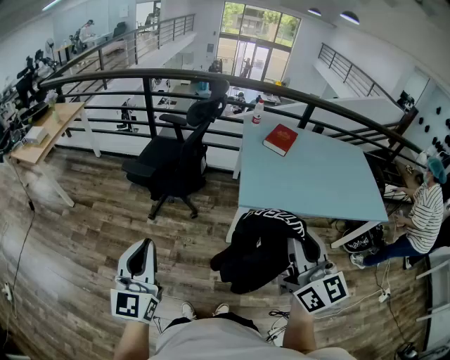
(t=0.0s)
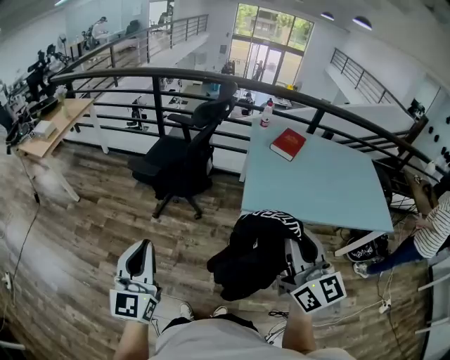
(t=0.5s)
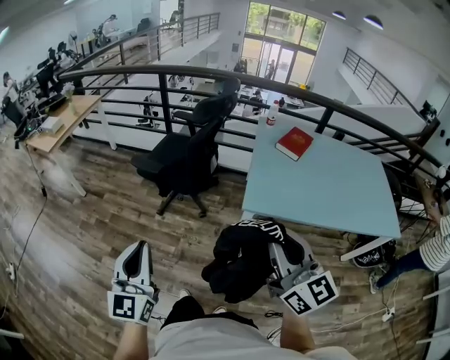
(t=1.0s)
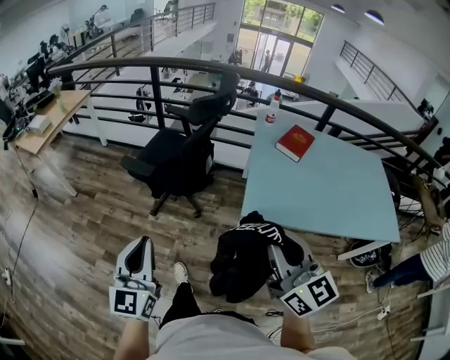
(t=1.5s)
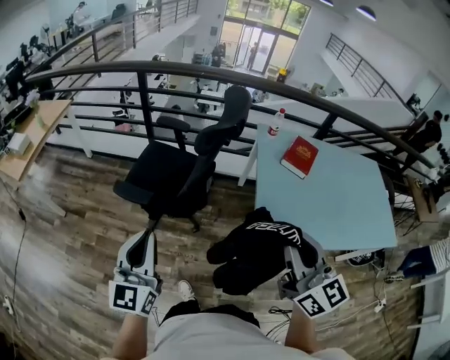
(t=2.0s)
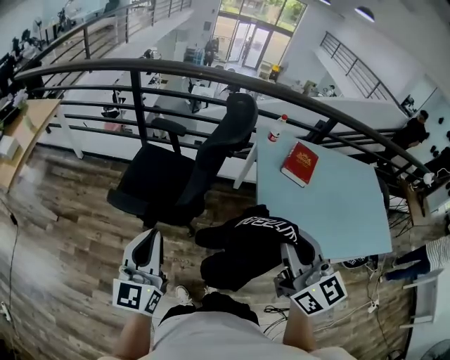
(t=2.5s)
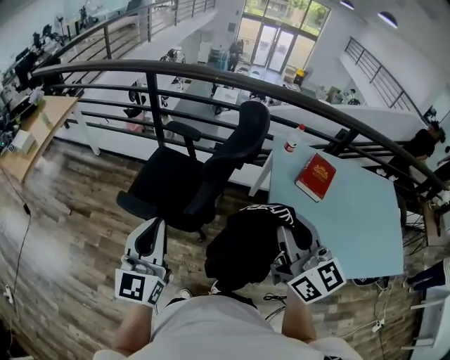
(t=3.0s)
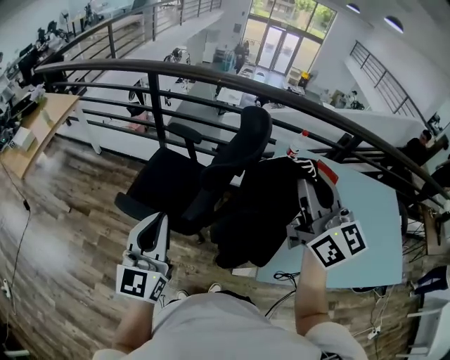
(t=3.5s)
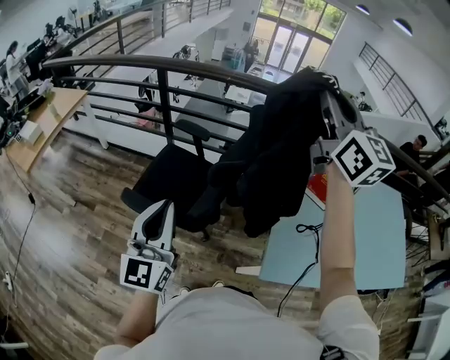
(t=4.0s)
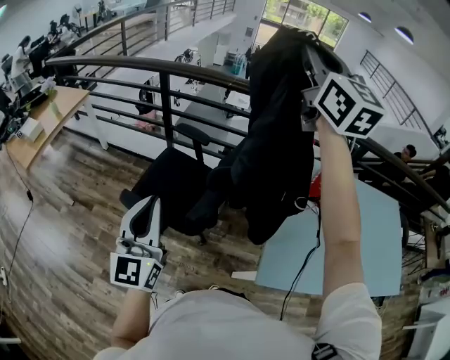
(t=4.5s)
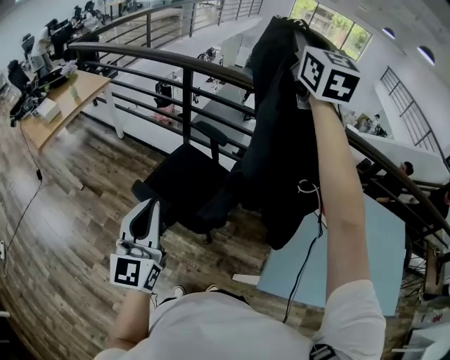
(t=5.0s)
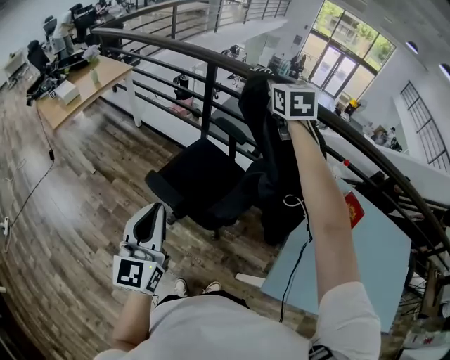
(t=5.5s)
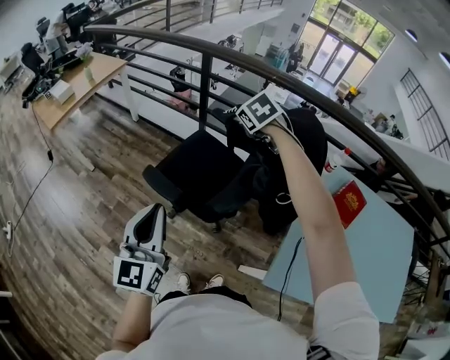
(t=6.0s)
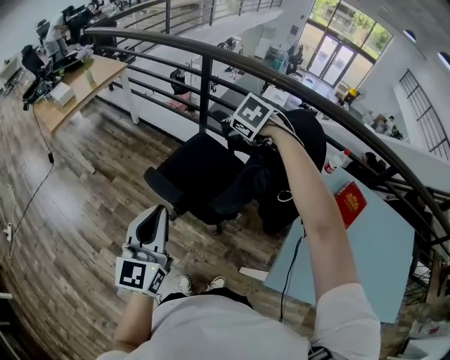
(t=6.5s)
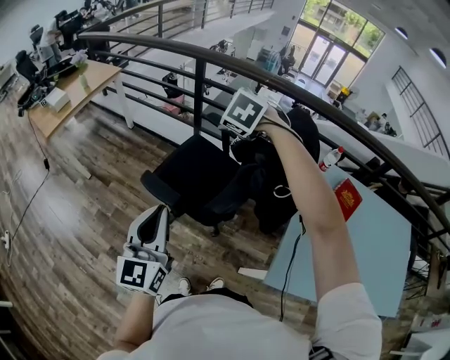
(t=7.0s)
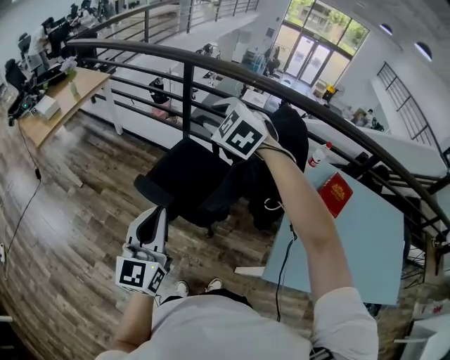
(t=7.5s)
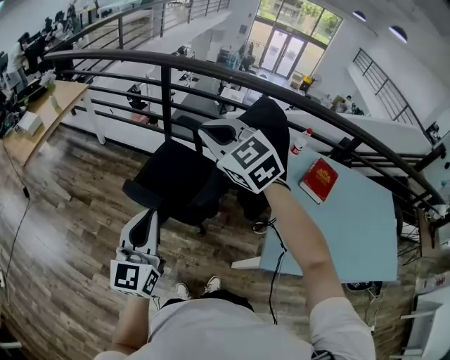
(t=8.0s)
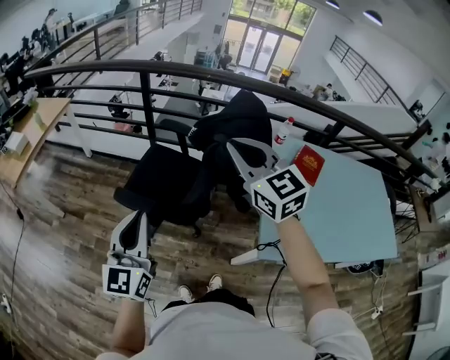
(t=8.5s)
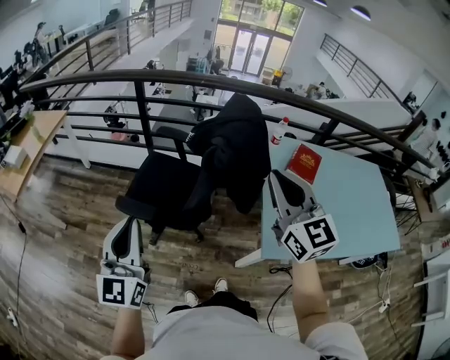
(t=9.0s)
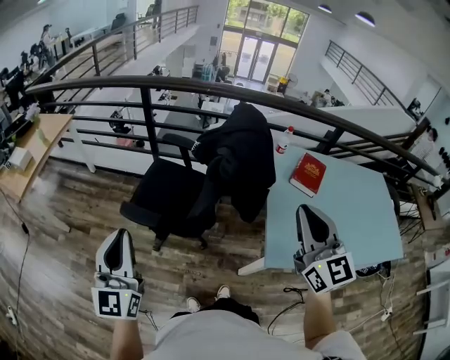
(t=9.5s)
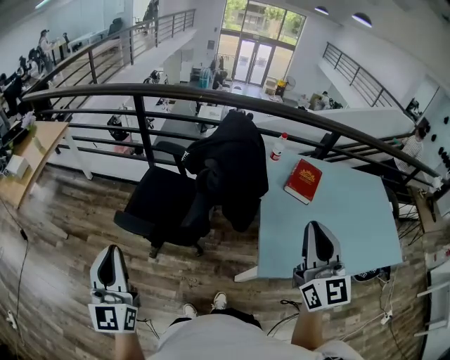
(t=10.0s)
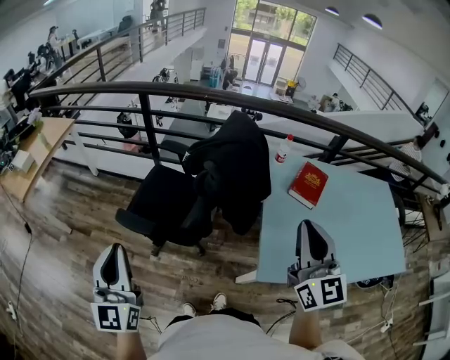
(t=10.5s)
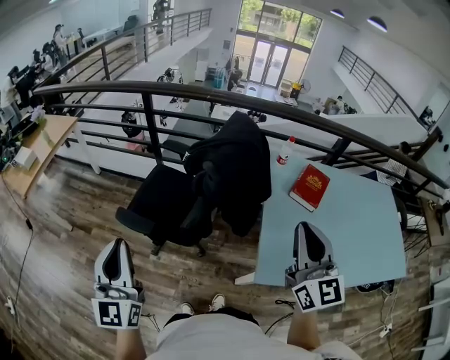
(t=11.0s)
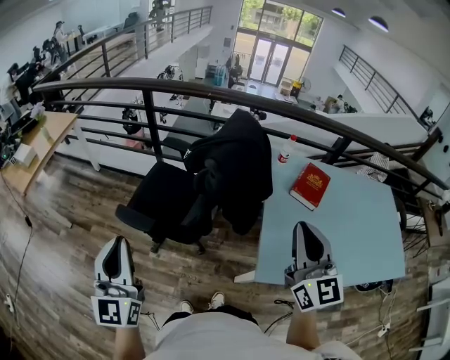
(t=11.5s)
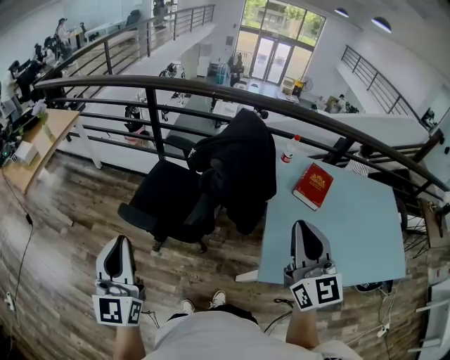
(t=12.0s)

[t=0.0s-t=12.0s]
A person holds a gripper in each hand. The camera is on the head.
t=0.0s to t=2.0s: The grippers both shift forward by roughly 30 cm.
t=2.0s to t=4.0s: The left gripper heads forward, covering some 20 cm. The right gripper moves forward and upward, some 40 cm.
t=4.0s to t=6.0s: The left gripper goes about 10 cm to the left. The right gripper shifts about 40 cm downward, to the left and forward, angles its fingers downward, by some 60 degrees, and opens.
t=6.0s to t=8.0s: The right gripper moves backward and upward, some 25 cm, turns by roughly 30 degrees, and closes its fingers.
t=8.0s to t=10.0s: The right gripper goes some 35 cm to the right and backward, and rotates approximately 60 degrees; the left gripper goes roughly 5 cm to the left.
t=10.0s to t=12.0s: The right gripper ends up roughly 5 cm from where it was.

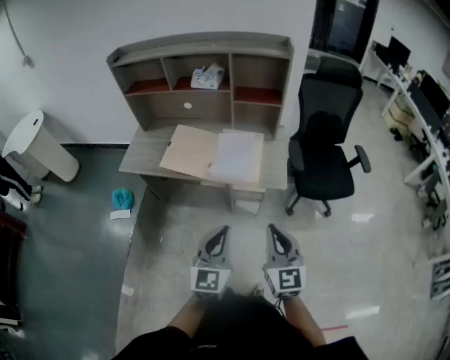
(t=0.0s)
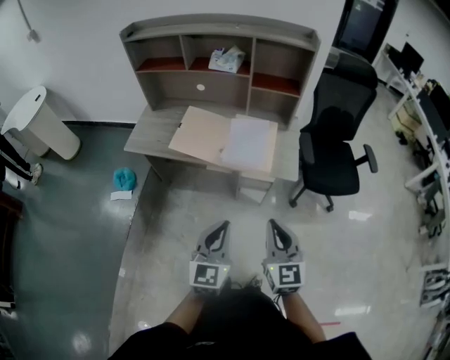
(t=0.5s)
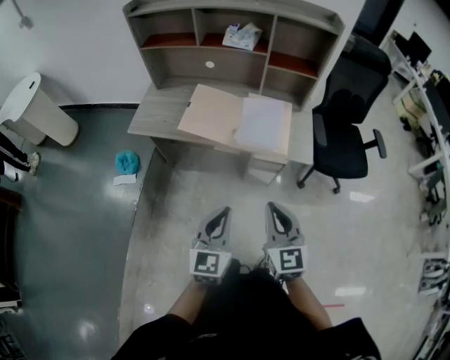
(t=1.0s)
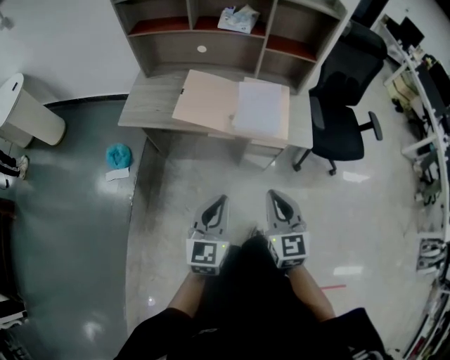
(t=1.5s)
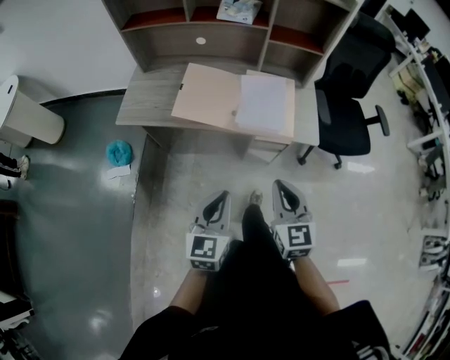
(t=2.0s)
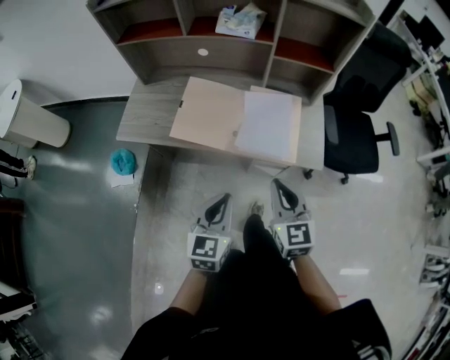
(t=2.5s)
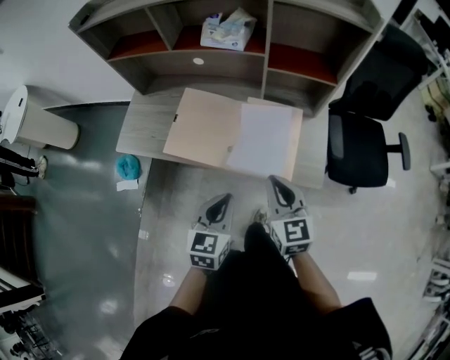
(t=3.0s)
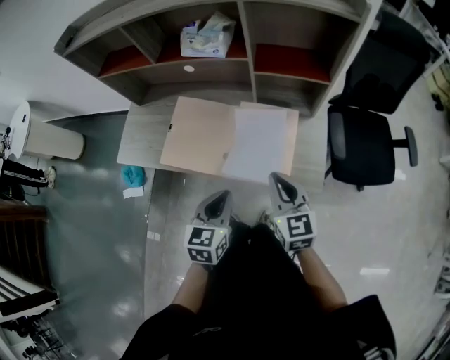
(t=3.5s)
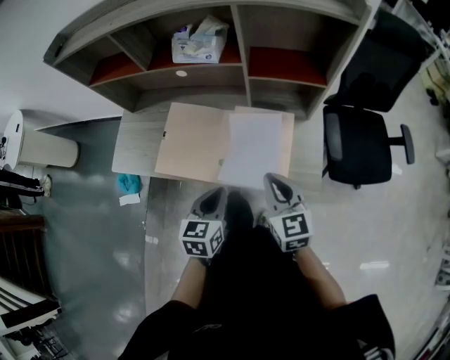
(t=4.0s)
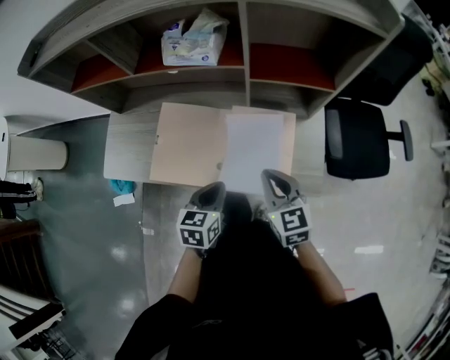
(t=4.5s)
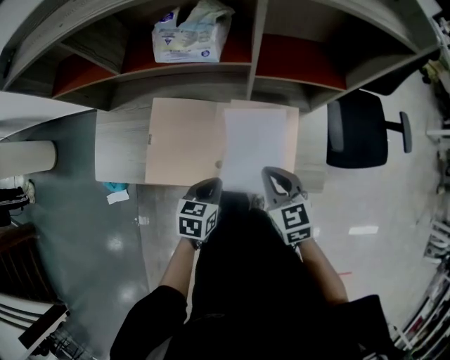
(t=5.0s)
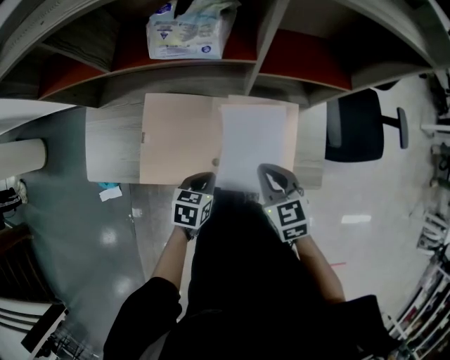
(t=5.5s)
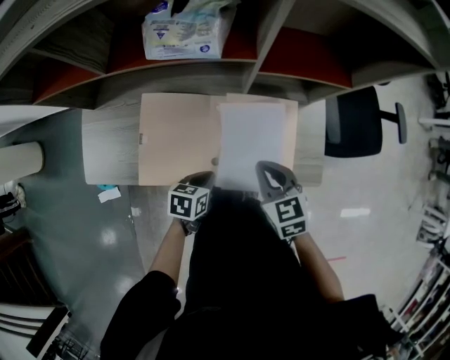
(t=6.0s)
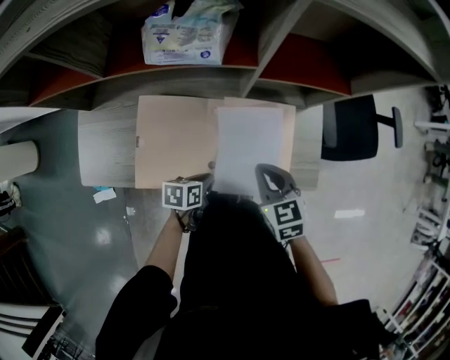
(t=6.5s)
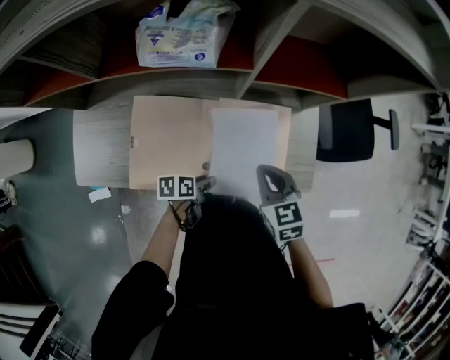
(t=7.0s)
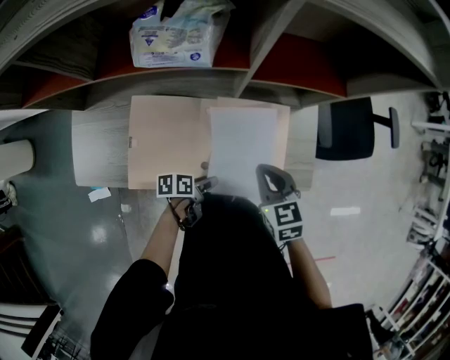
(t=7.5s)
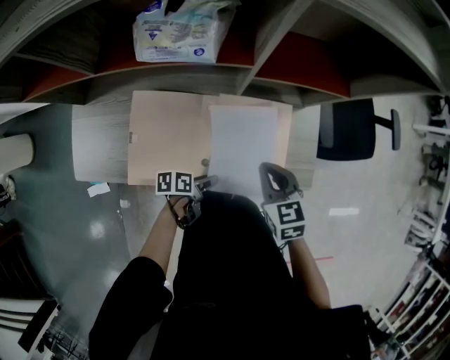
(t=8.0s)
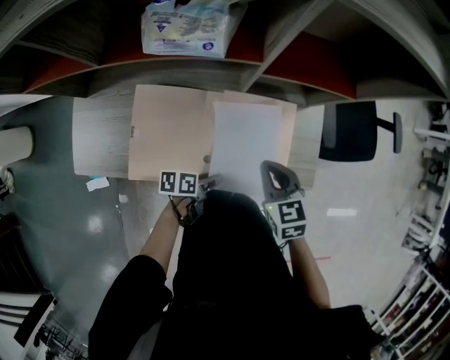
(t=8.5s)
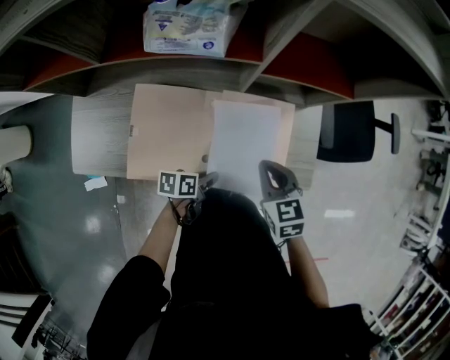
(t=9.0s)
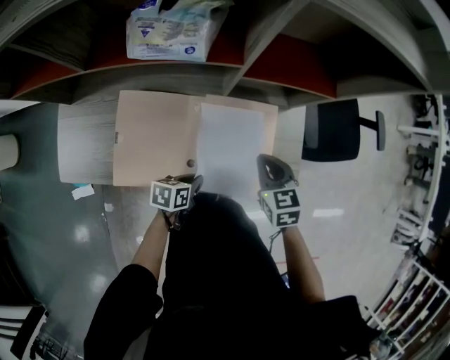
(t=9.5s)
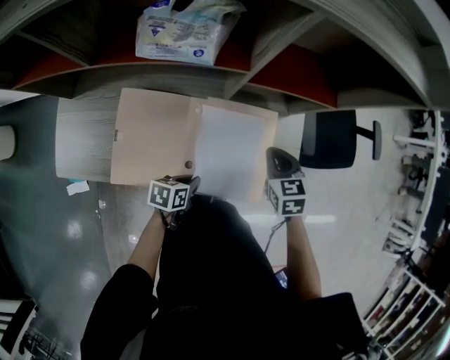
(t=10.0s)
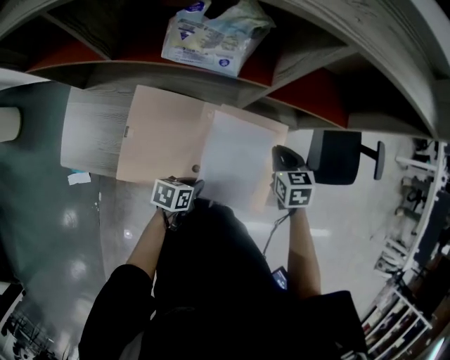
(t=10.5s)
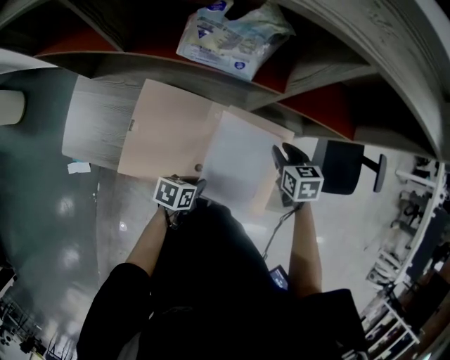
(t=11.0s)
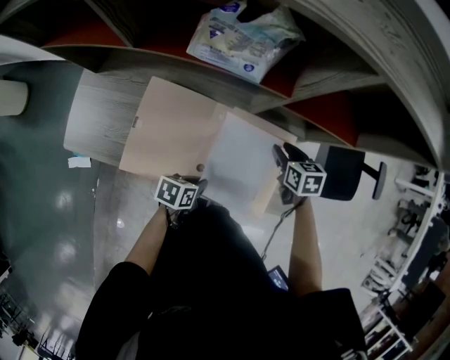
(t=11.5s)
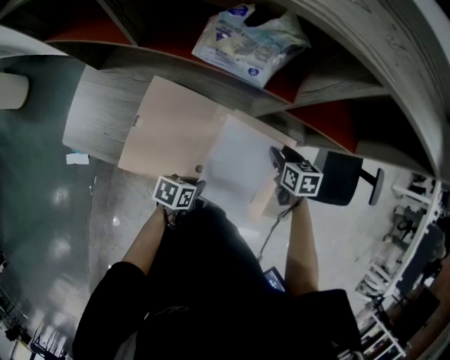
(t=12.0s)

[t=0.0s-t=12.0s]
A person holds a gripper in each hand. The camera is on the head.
t=0.0s to t=2.0s: The left gripper is displaced to the left and downward by about 20 cm. The right gripper heads to the left, downward and forward, covering some 20 cm.
t=2.0s to t=4.0s: The grippers both shift forward by about 25 cm.
t=4.0s to t=6.0s: The left gripper travels downward and forward by some 20 cm, and turns by roughly 40 degrees, while the right gripper is displaced downward, forward and to the left by about 15 cm, and changes its angle by approximately 20 degrees.
t=6.0s to t=8.0s: The left gripper shifts by some 5 cm, rotates approximately 40 degrees, and opens.
t=8.0s to t=10.0s: The left gripper rotates approximately 20 degrees, and closes its fingers; the right gripper moves forward, roughly 10 cm.
t=10.0s to t=12.0s: The right gripper is displaced downward and forward by roughly 10 cm, and opens its fingers.

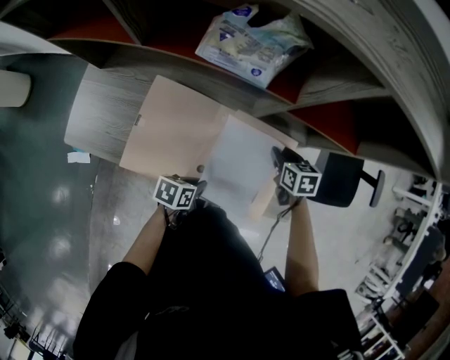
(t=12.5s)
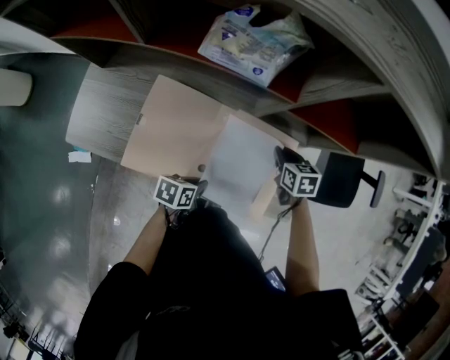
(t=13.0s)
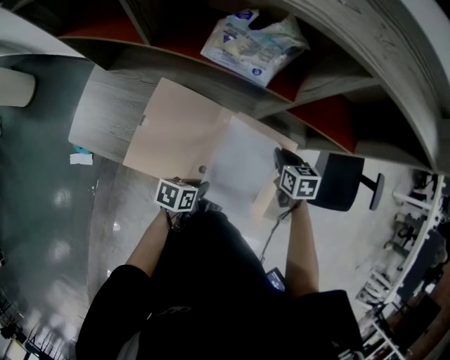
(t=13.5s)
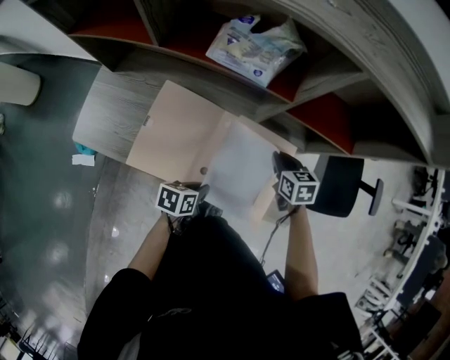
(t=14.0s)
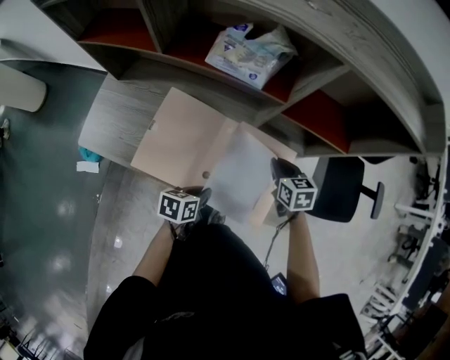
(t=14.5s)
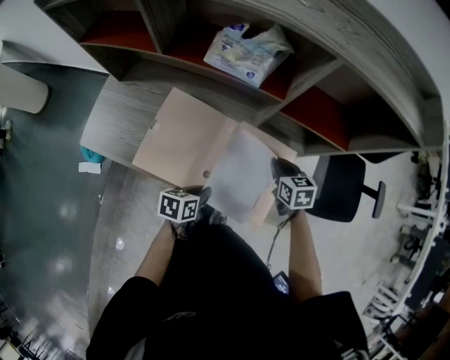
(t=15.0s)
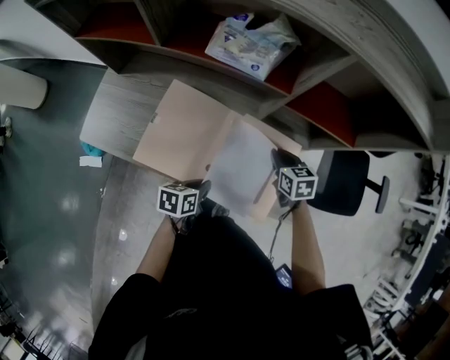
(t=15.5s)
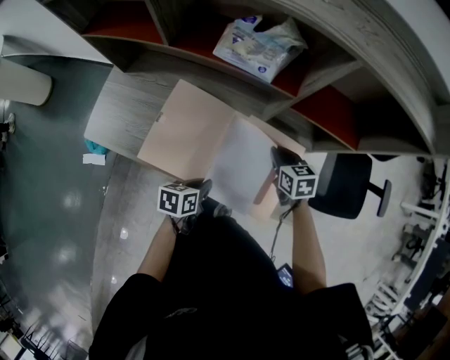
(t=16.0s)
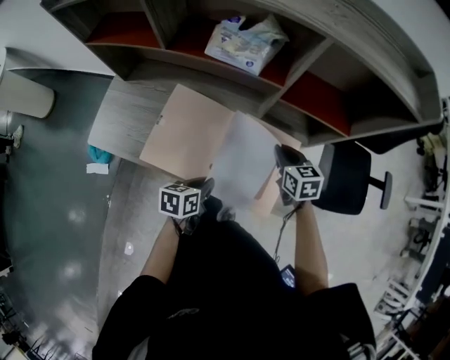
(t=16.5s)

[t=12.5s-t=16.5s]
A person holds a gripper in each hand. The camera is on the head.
t=12.5s to t=14.5s: The right gripper travels upward by about 5 cm, and closes.
t=14.5s to t=16.5s: The grippers move only a little.
